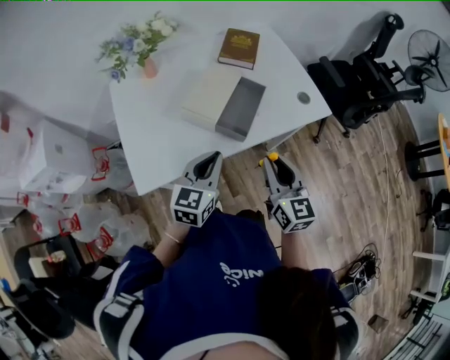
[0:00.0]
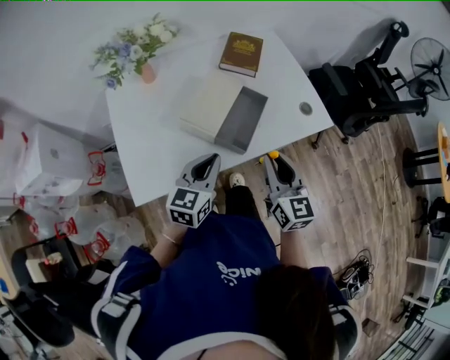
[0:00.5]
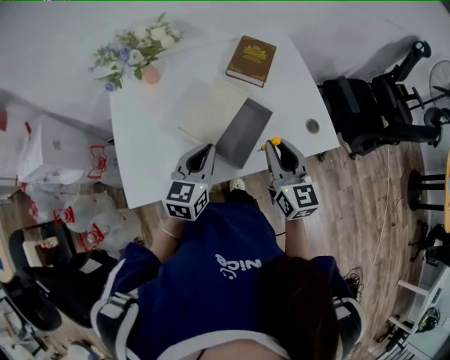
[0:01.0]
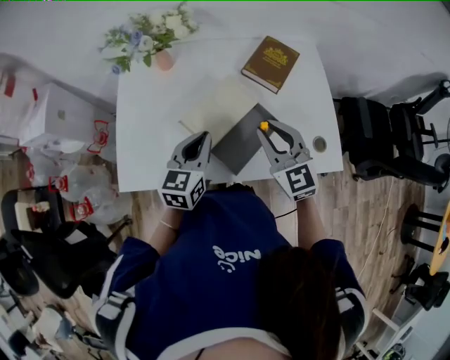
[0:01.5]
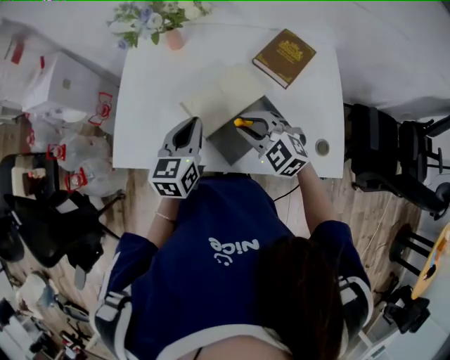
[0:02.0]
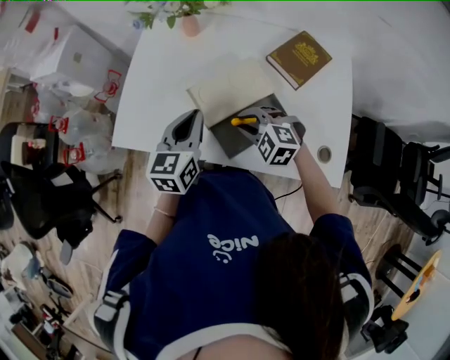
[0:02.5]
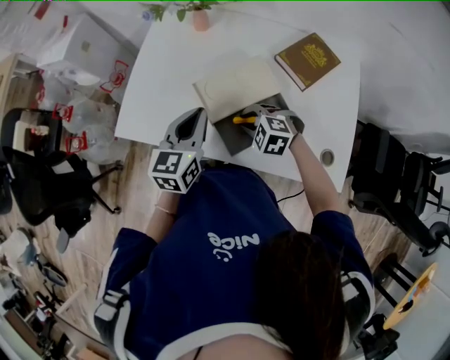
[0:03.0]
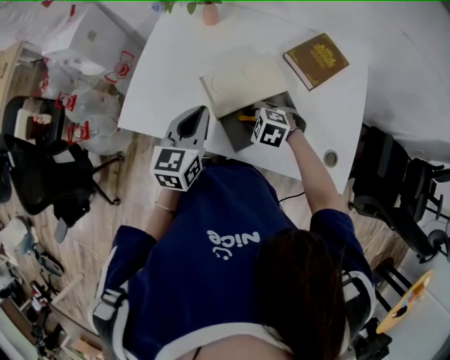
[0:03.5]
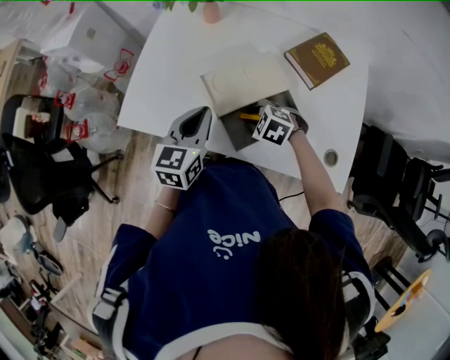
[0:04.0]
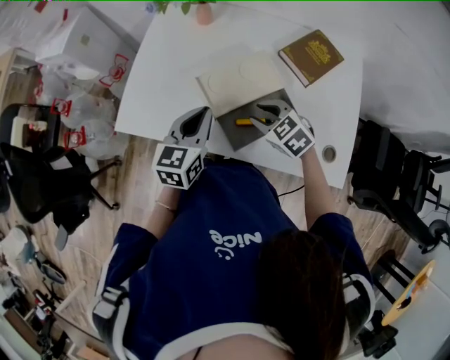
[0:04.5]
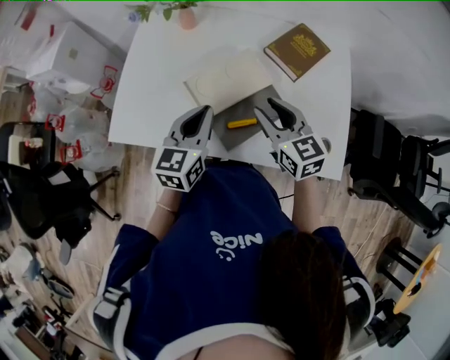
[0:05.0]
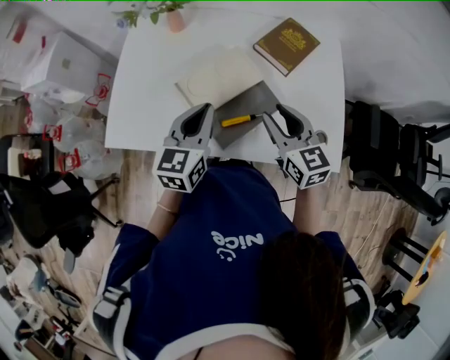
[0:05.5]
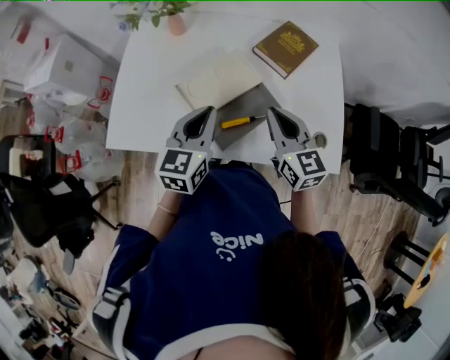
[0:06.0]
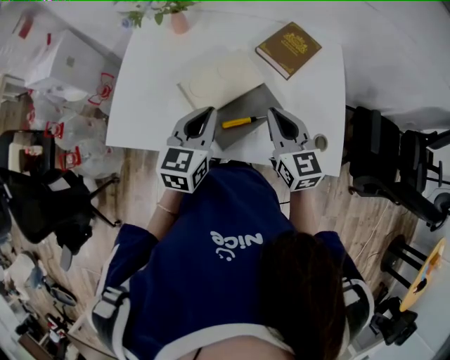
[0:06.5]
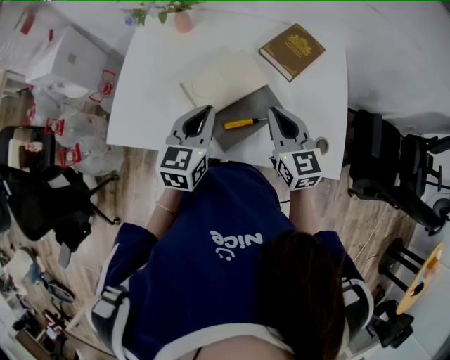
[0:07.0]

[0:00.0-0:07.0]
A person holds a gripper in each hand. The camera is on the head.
0:00.0 to 0:02.0: The left gripper moves some 20 cm, and changes its angle by some 40 degrees; the right gripper changes place by about 25 cm, and turns by roughly 80 degrees.
0:02.0 to 0:03.5: The right gripper travels downward by roughly 15 cm, and angles its fingers downward, by approximately 30 degrees.
0:03.5 to 0:05.0: The right gripper is displaced upward by about 15 cm, and tilts its fingers about 40 degrees upward.
0:05.0 to 0:07.0: The right gripper closes.

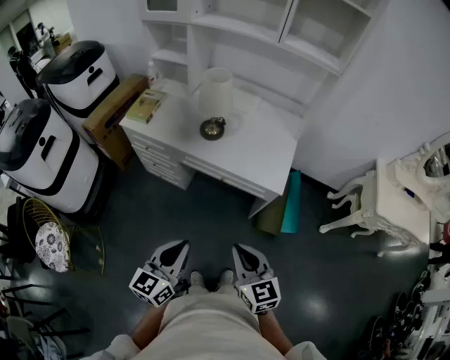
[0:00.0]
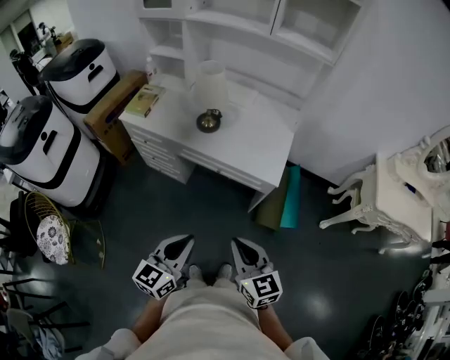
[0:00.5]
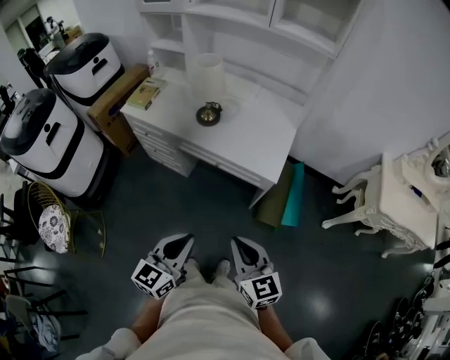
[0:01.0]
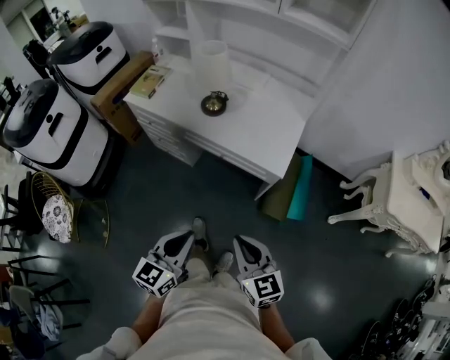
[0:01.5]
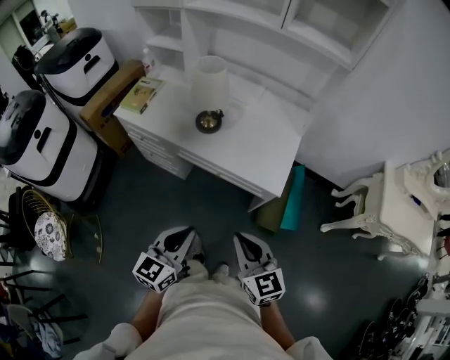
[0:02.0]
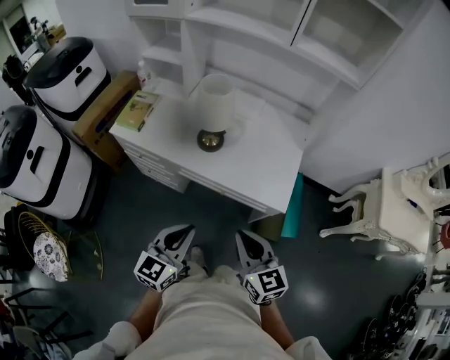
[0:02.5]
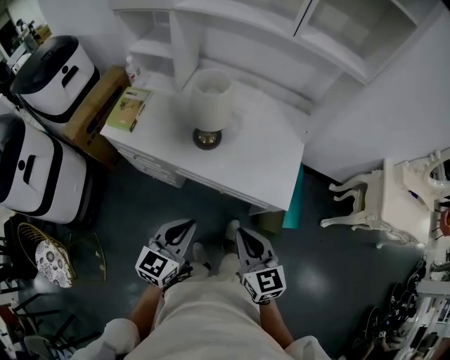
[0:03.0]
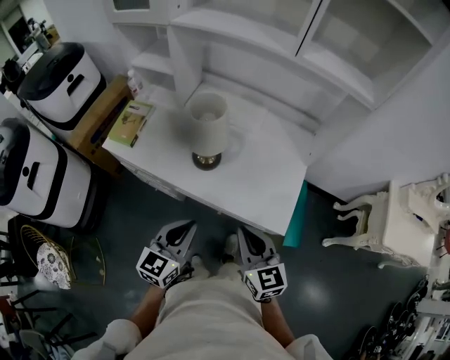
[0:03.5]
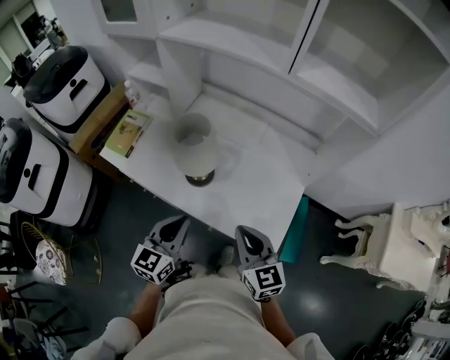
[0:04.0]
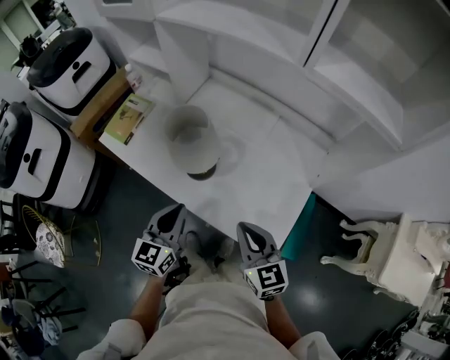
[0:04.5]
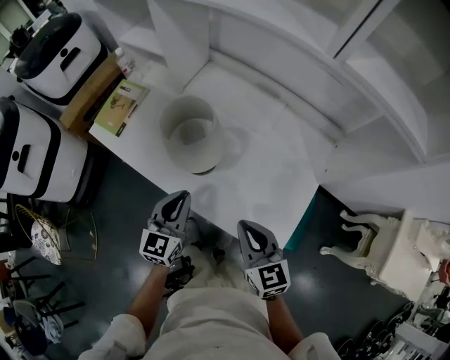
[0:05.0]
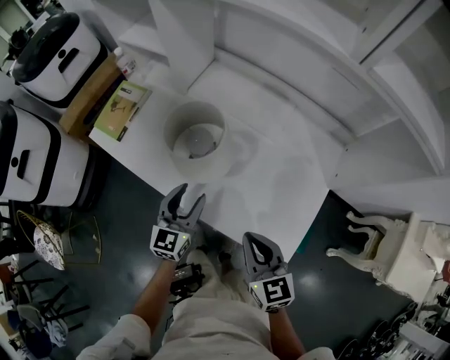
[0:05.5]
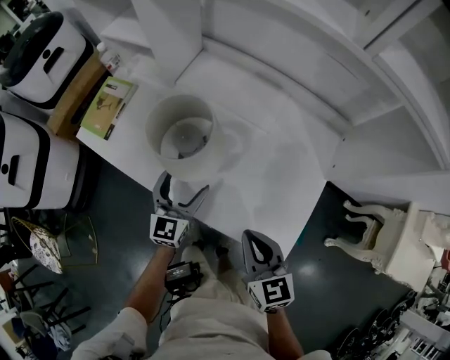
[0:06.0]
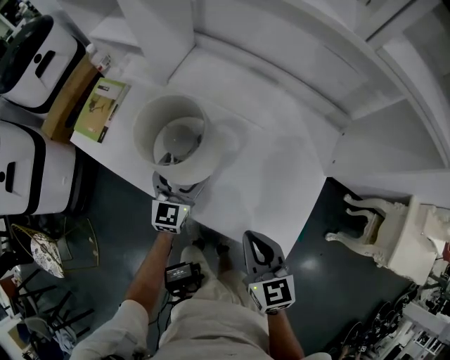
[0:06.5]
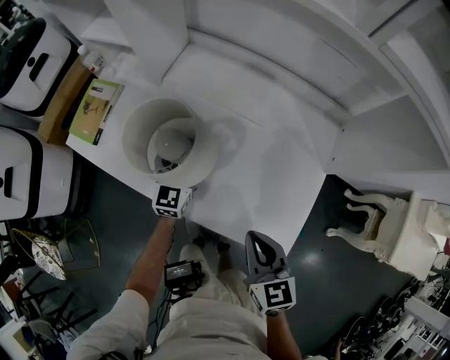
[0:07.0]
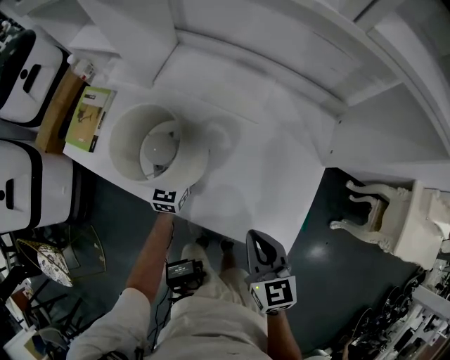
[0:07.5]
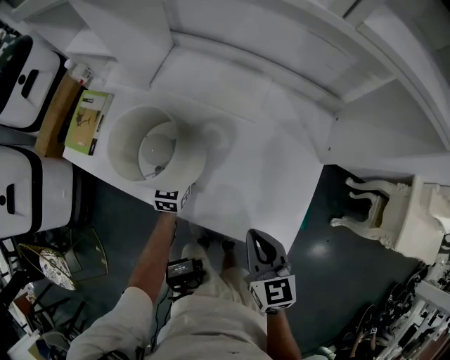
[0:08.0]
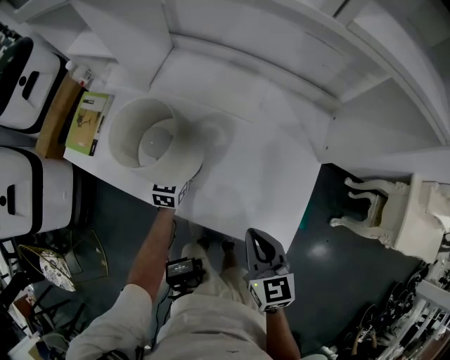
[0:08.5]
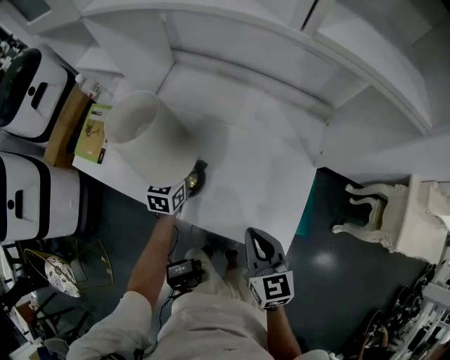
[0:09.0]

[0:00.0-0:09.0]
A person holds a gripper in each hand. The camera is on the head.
0:00.0 to 0:02.0: The right gripper travels forward by about 10 cm. The left gripper heads forward and to the right, covering about 10 cm.
0:02.0 to 0:04.5: Both grippers travel together forward, roughly 35 cm.
0:04.5 to 0:07.0: The left gripper moves forward and downward, roughly 25 cm, and opens up. The right gripper heads downward, covering some 10 cm.
0:07.0 to 0:09.0: The left gripper closes its fingers.

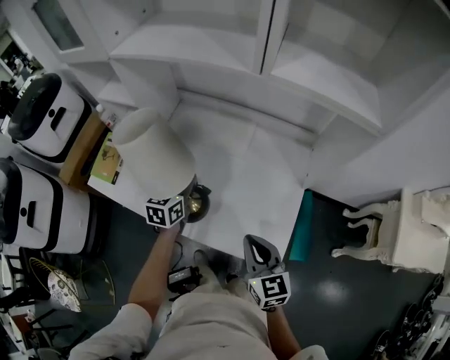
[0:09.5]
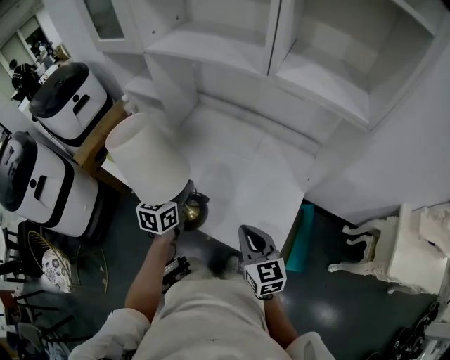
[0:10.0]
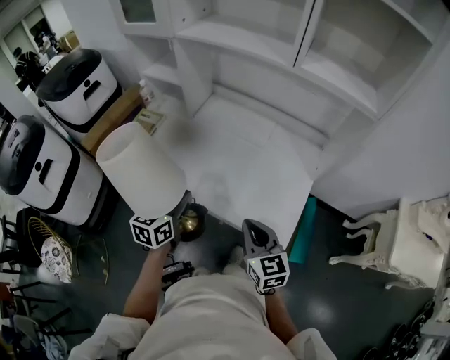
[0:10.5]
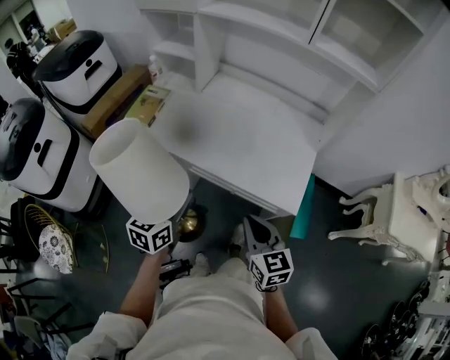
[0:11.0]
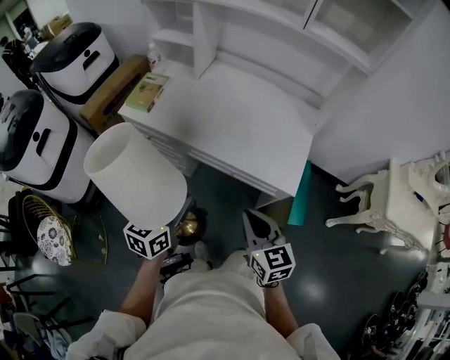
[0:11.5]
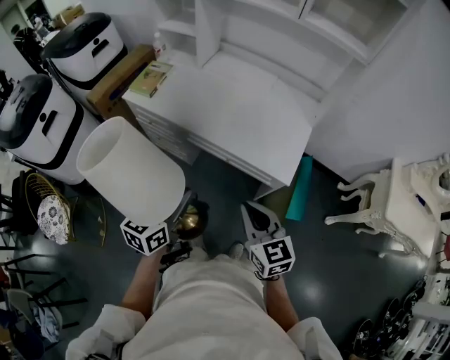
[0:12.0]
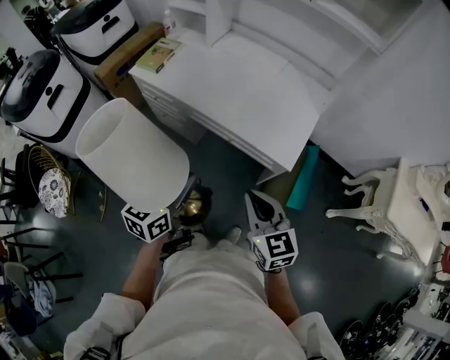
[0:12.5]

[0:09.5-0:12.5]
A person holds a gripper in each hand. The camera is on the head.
0:09.5 to 0:11.0: The left gripper goes some 35 cm backward; the right gripper goes approximately 25 cm backward and to the left.
0:11.0 to 0:12.5: The grippers both shift backward and to the right by approximately 15 cm.

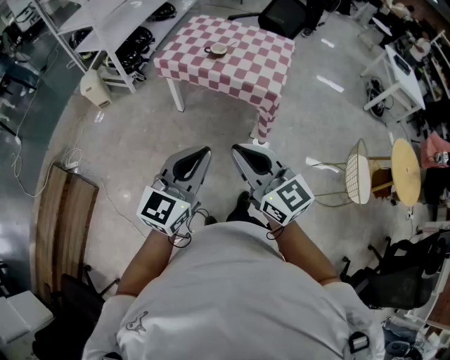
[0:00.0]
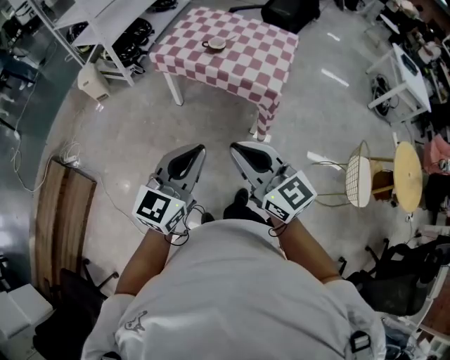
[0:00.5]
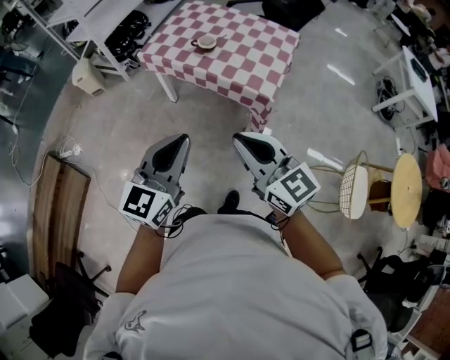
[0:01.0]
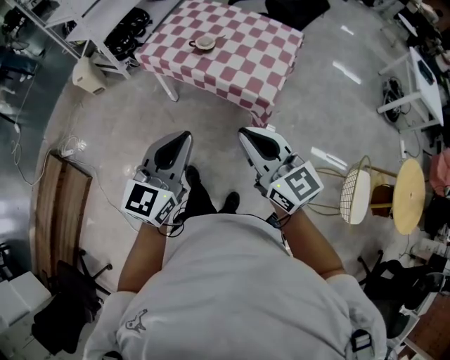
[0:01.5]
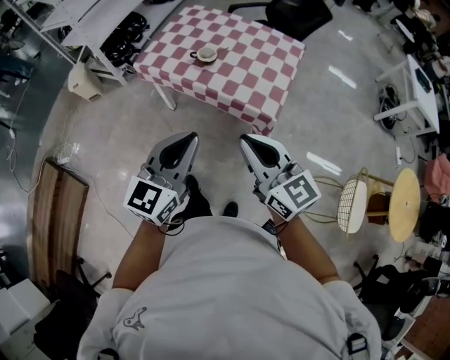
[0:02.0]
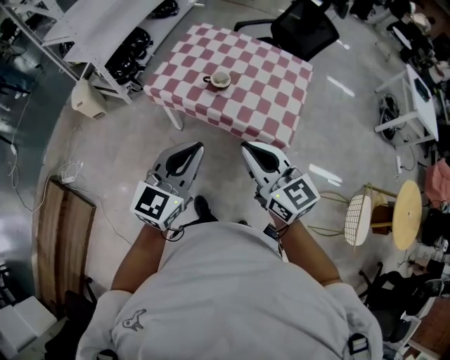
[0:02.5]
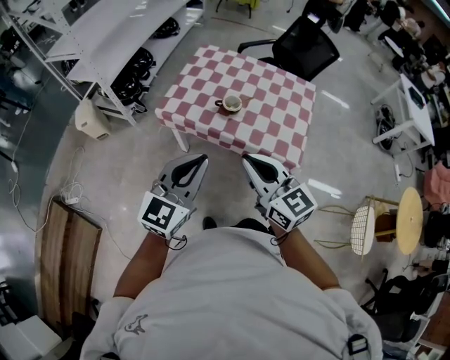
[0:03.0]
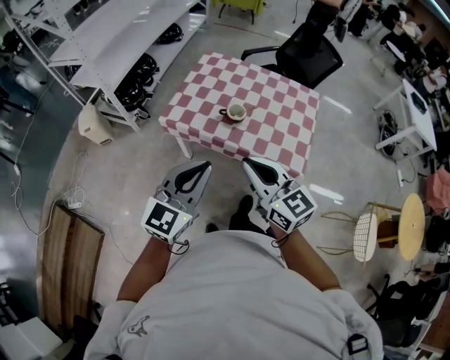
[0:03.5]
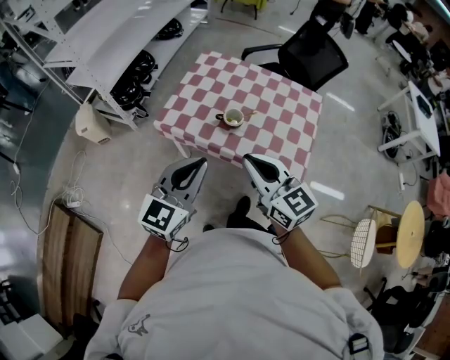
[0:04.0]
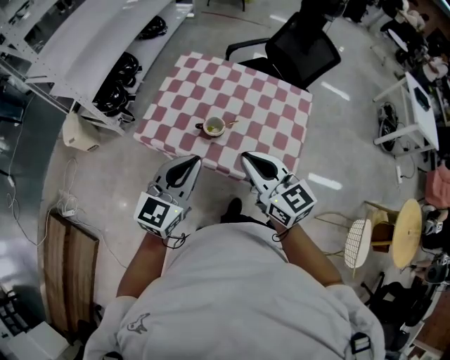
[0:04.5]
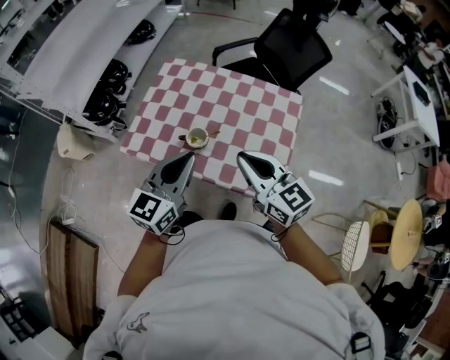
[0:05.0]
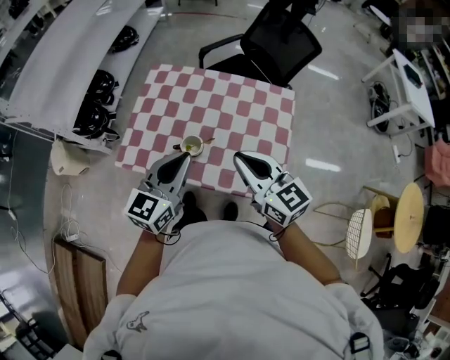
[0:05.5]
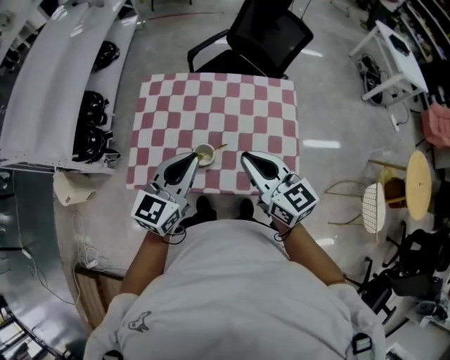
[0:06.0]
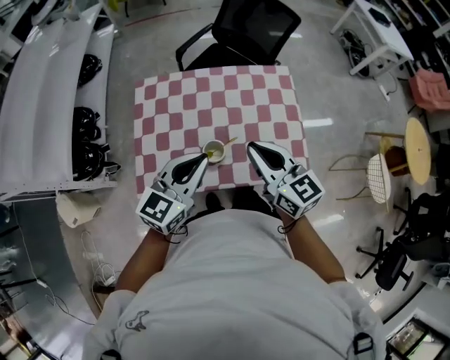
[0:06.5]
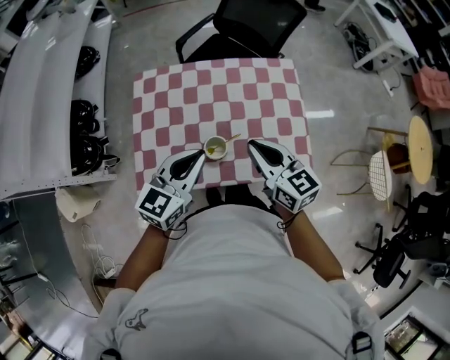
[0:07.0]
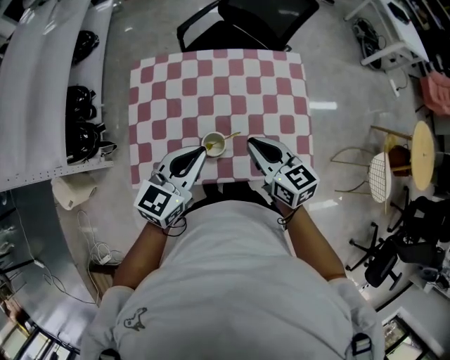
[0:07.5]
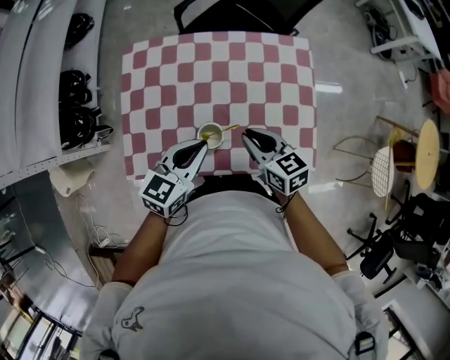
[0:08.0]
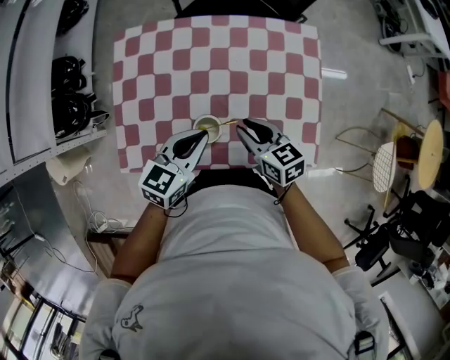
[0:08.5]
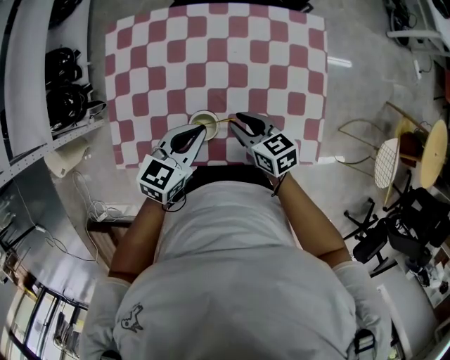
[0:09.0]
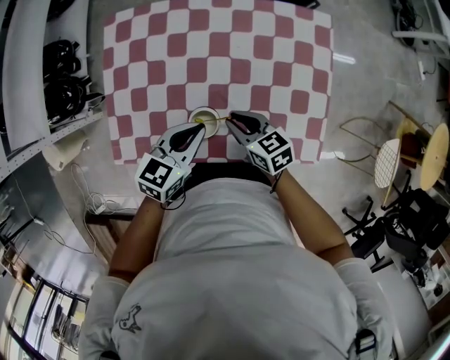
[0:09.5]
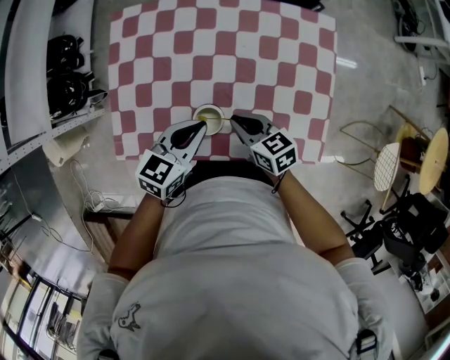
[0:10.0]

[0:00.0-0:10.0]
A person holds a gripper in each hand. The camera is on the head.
0:00.0 to 0:02.0: Both grippers move forward and to the right, roughly 30 cm.
0:02.0 to 0:04.0: The grippers both shift forward and to the left by roughly 25 cm.
0:04.0 to 0:06.0: The right gripper moves forward and to the right, roughly 25 cm, and swivels some 20 degrees. Meanwhile the left gripper is displaced forward by some 25 cm.
0:06.0 to 0:08.0: The right gripper shifts some 15 cm downward, and rotates some 20 degrees, while the left gripper heads downward and forward, covering approximately 15 cm, and changes its angle by approximately 20 degrees.
0:08.0 to 0:10.0: The grippers both shift downward by about 10 cm.
